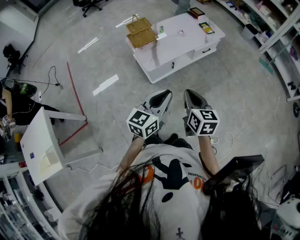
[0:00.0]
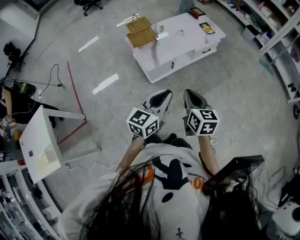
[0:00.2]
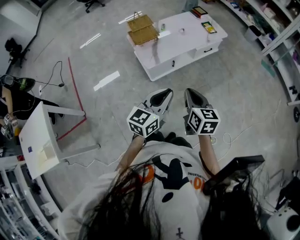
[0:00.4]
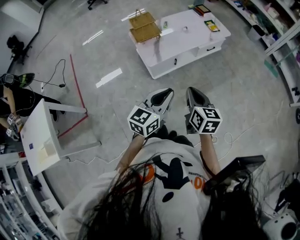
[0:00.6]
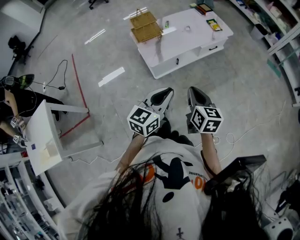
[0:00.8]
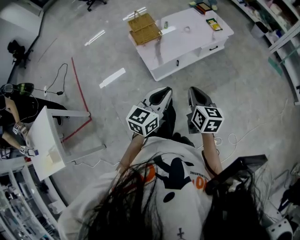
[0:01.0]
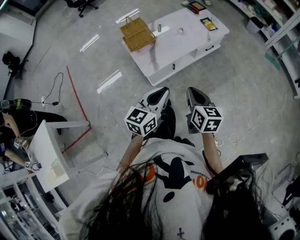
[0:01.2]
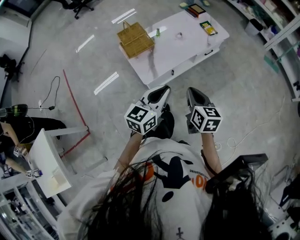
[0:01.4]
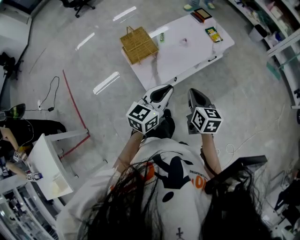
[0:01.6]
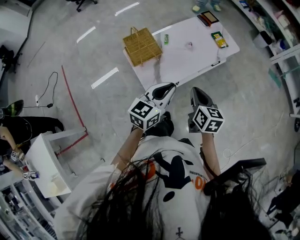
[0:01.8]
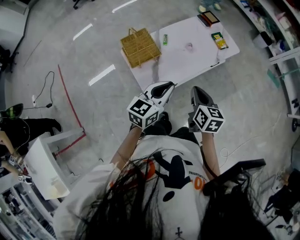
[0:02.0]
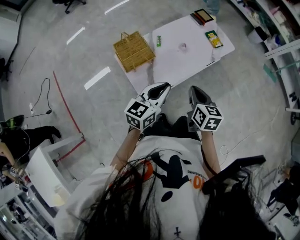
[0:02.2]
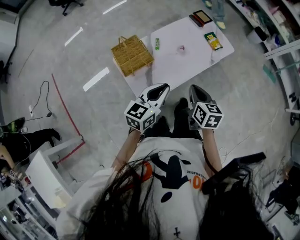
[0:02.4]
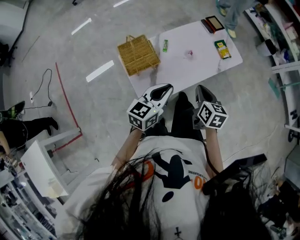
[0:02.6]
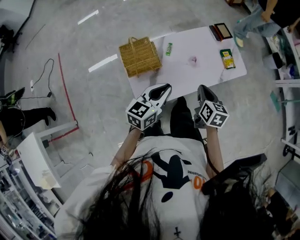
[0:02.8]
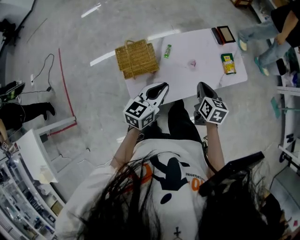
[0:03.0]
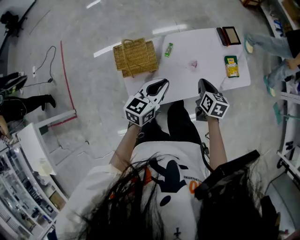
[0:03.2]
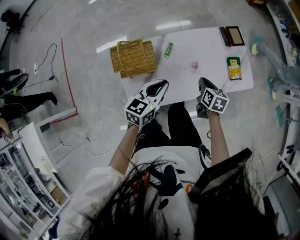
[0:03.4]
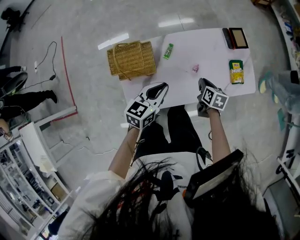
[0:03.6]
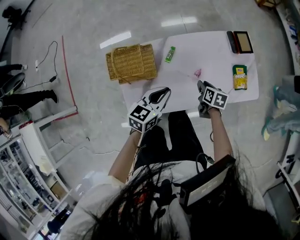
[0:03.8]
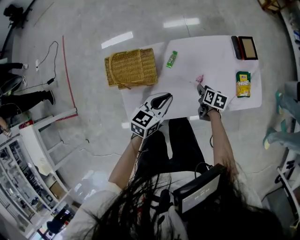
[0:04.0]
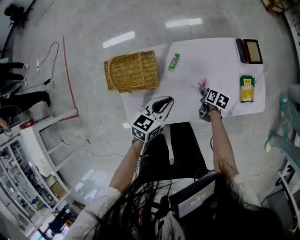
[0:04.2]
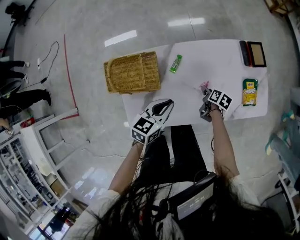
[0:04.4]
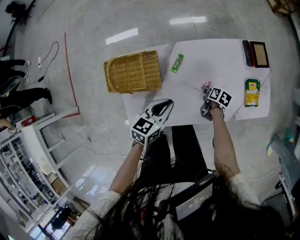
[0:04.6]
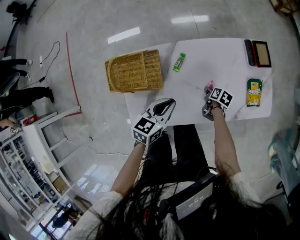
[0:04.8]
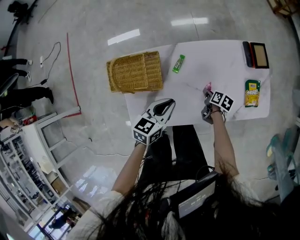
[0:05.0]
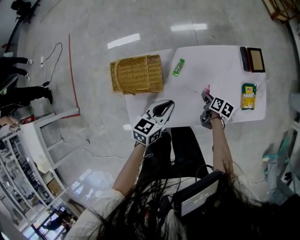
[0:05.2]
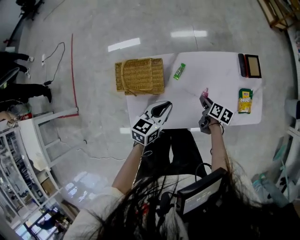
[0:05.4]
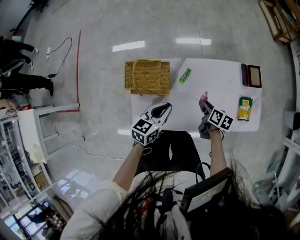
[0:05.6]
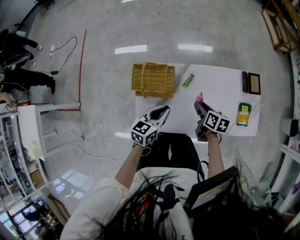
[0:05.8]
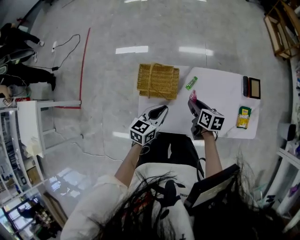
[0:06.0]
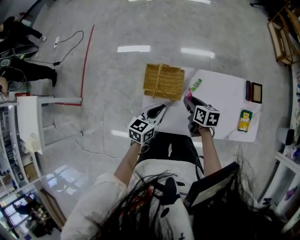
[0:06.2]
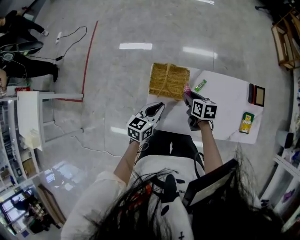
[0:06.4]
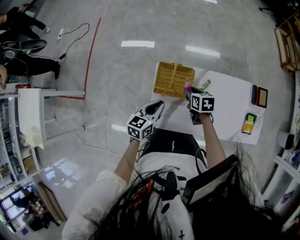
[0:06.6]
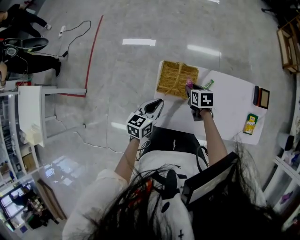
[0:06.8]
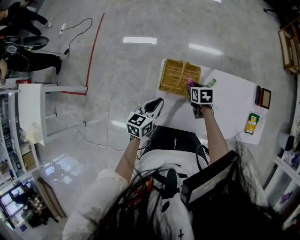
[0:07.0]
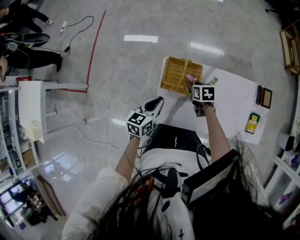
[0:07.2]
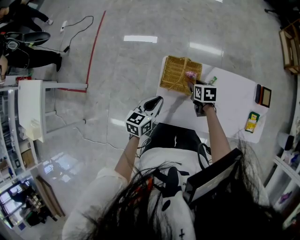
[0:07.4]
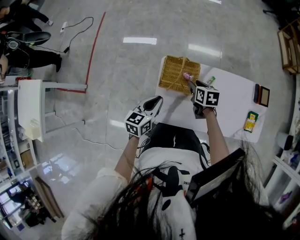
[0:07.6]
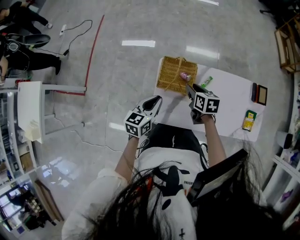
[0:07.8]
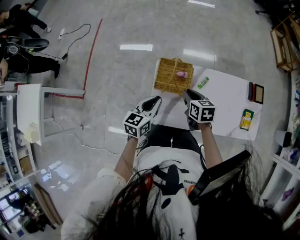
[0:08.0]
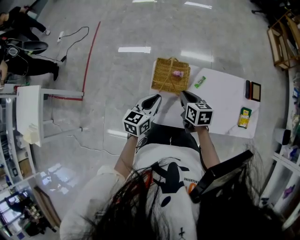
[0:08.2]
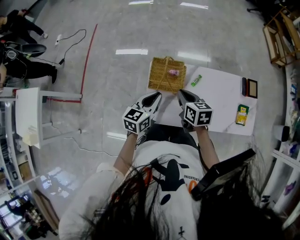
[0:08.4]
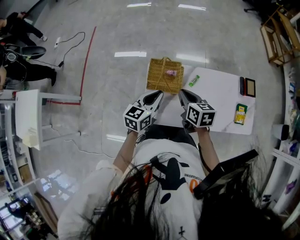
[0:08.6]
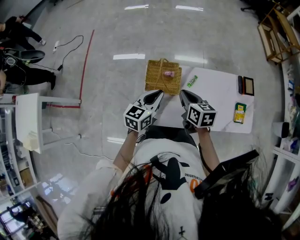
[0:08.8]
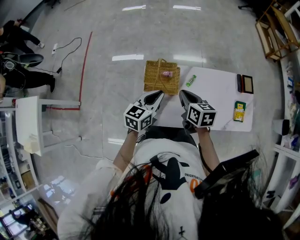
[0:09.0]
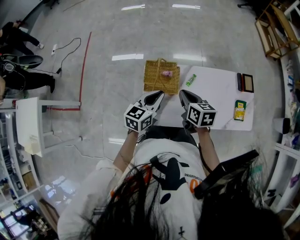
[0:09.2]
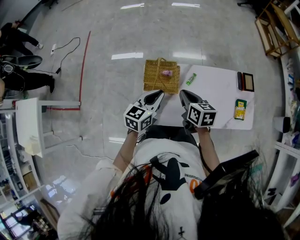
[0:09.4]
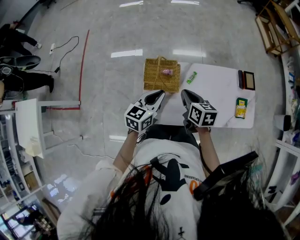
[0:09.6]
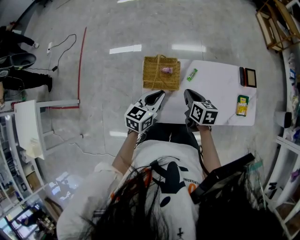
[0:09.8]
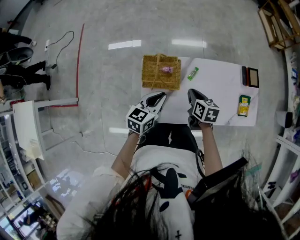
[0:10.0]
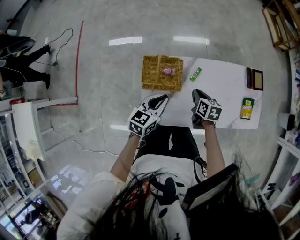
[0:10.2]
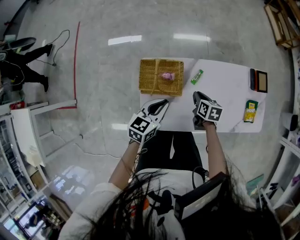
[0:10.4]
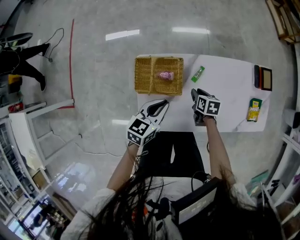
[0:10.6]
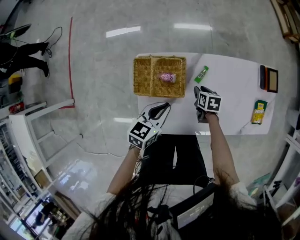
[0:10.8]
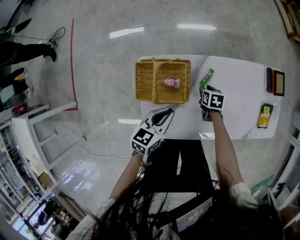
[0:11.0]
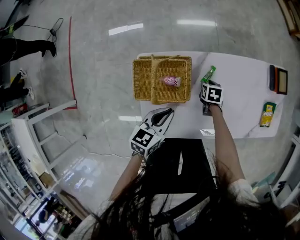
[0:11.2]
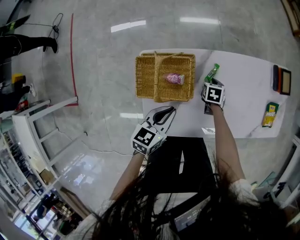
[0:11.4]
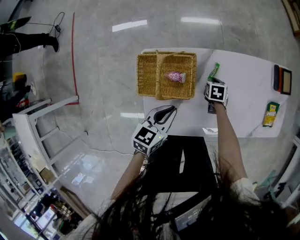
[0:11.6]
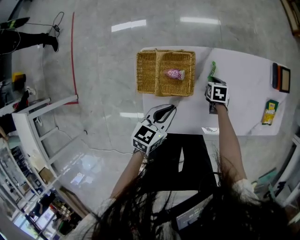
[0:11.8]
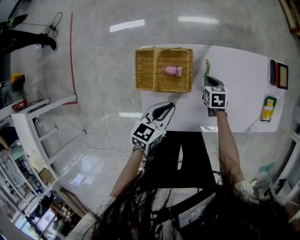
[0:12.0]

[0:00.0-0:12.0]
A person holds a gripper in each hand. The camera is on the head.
0:00.0 to 0:01.6: The two grippers go about 25 cm forward.
0:01.6 to 0:03.0: The two grippers go about 30 cm forward.
0:03.0 to 0:04.4: The right gripper shifts roughly 35 cm downward and forward, changes its angle by approximately 30 degrees, and opens its fingers, while the left gripper shifts about 20 cm downward and forward.
0:04.4 to 0:06.0: The right gripper shifts roughly 30 cm upward and to the left, and changes its angle by some 40 degrees, while the left gripper travels to the left and upward by about 15 cm.
0:06.0 to 0:07.6: The left gripper is displaced to the left by roughly 15 cm. The right gripper is displaced to the left and forward by some 15 cm.
0:07.6 to 0:09.0: The left gripper shifts approximately 10 cm to the right and upward; the right gripper is displaced upward and backward by some 15 cm, and closes its fingers.
0:09.0 to 0:10.4: The left gripper travels downward by some 10 cm, while the right gripper is displaced downward by roughly 25 cm, and rotates roughly 20 degrees.
0:10.4 to 0:12.0: The grippers both shift downward by approximately 10 cm. The right gripper swivels some 20 degrees, and opens, then closes once more.

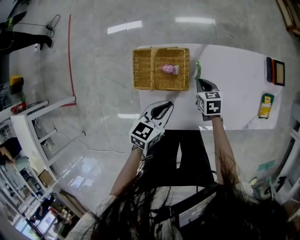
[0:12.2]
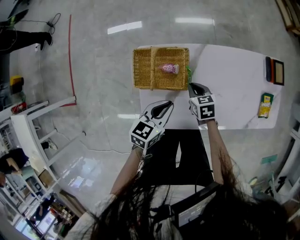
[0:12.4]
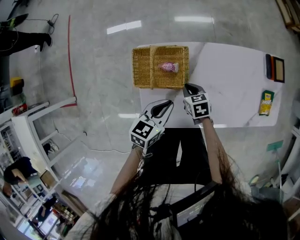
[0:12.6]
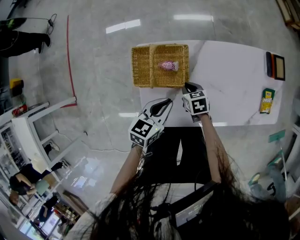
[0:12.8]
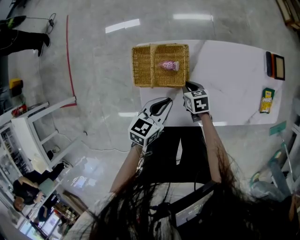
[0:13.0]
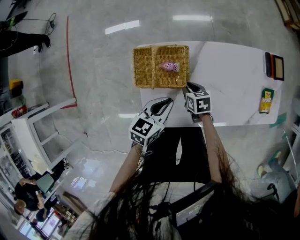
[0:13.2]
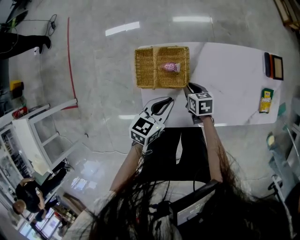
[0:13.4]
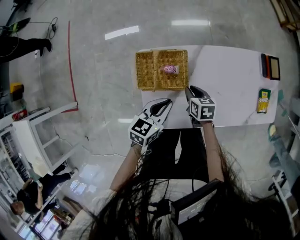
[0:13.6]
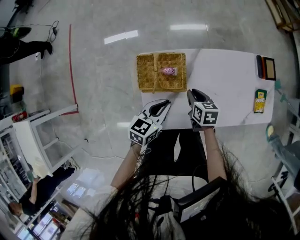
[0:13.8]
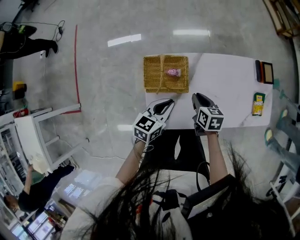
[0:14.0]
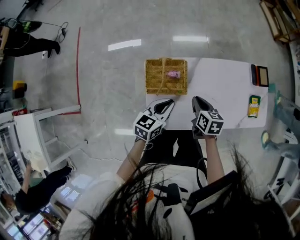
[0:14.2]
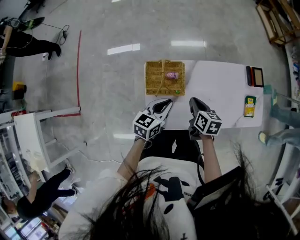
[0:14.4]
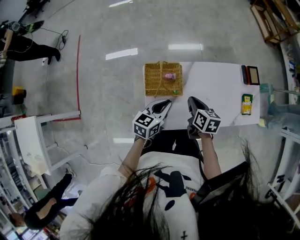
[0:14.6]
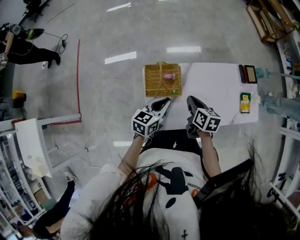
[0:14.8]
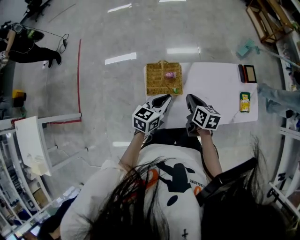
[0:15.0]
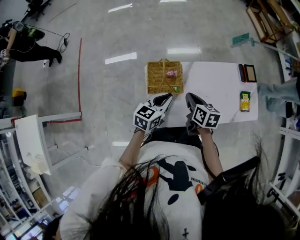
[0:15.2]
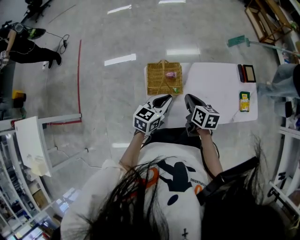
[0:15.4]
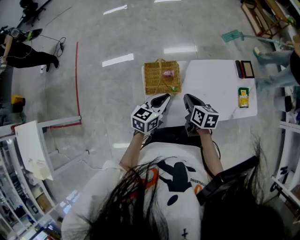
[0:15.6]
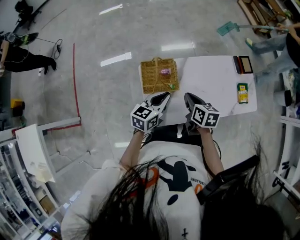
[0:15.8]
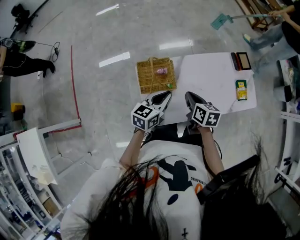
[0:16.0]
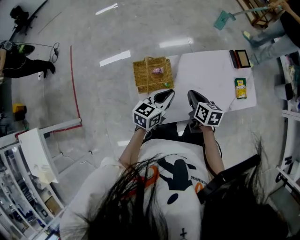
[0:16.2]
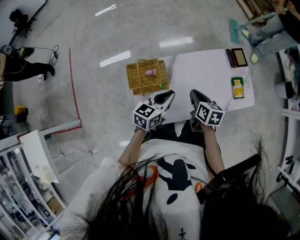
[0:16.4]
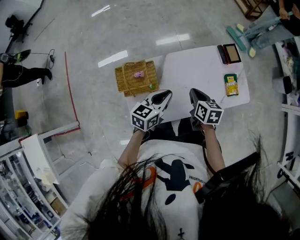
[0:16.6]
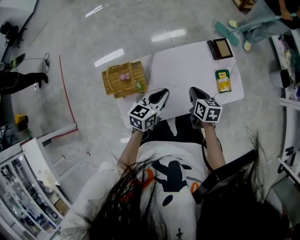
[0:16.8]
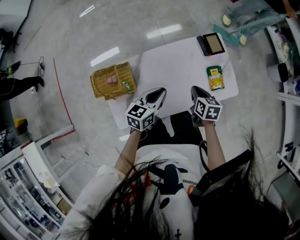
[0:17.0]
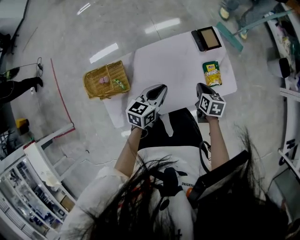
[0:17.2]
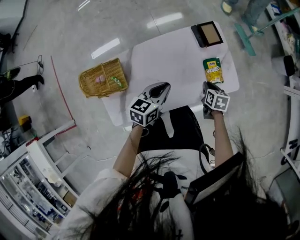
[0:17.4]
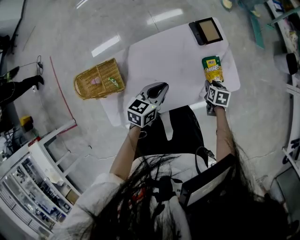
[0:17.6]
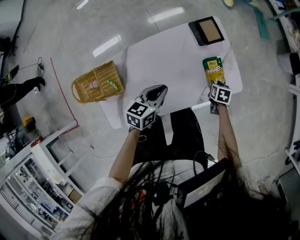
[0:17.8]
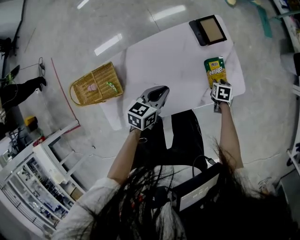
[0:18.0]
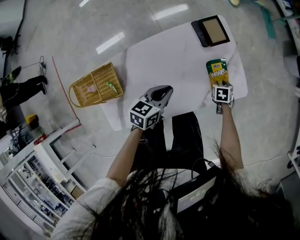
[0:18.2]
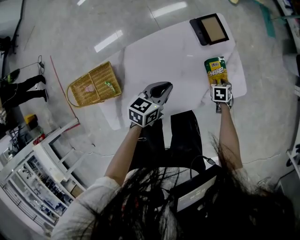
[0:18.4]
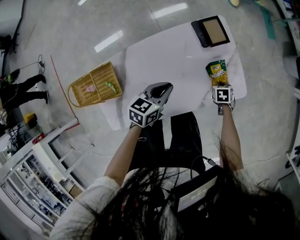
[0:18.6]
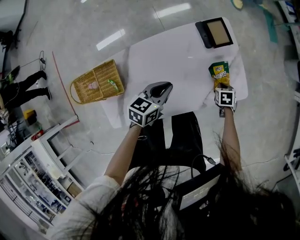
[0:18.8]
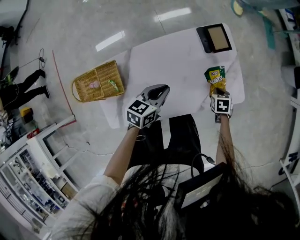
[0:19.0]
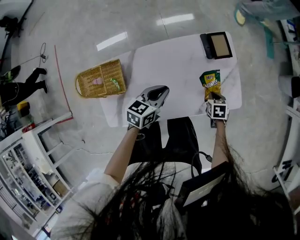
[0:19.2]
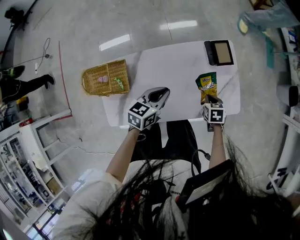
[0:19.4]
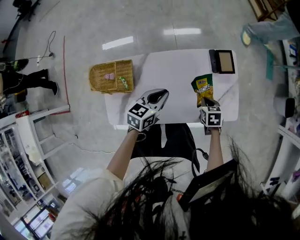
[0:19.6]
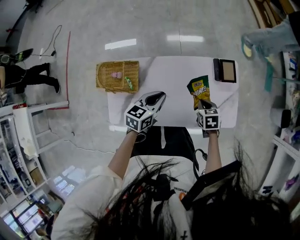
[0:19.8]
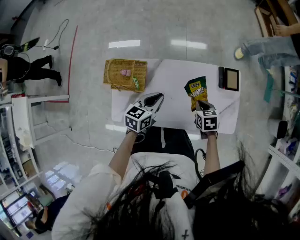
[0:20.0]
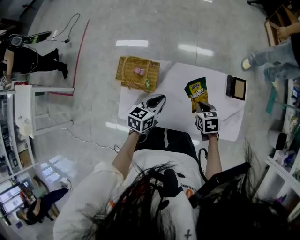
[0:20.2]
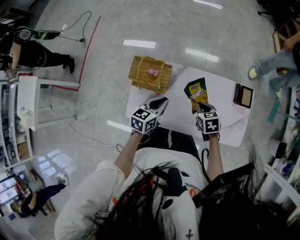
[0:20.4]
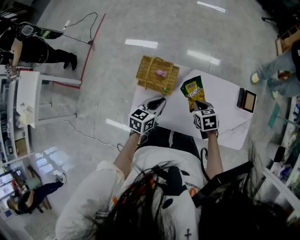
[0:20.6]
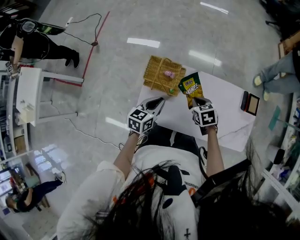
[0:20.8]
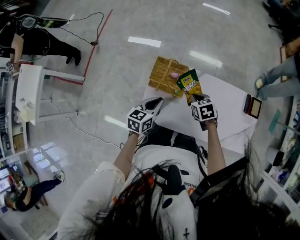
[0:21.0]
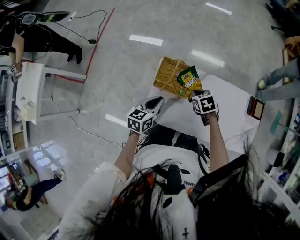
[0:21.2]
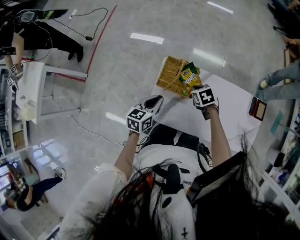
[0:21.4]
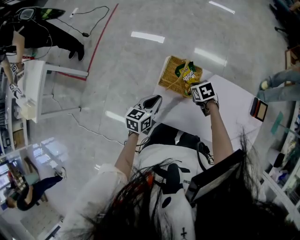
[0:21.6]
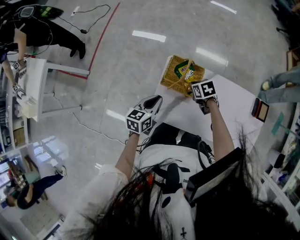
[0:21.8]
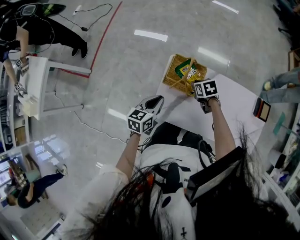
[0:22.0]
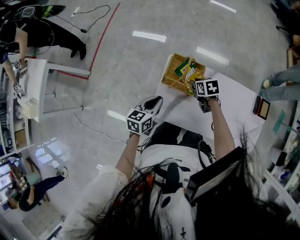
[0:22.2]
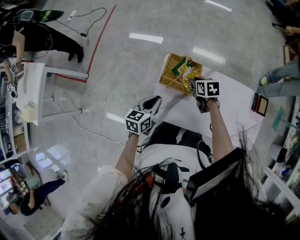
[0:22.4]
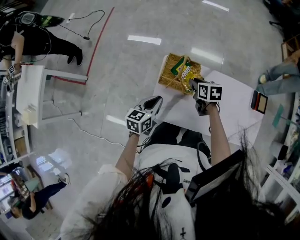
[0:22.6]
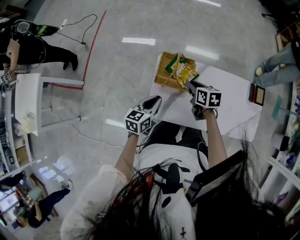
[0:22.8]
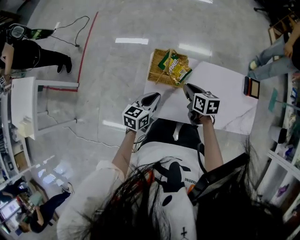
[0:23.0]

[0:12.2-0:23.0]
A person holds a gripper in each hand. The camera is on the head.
0:12.2 to 0:13.8: The right gripper goes some 5 cm upward.
0:13.8 to 0:15.2: The right gripper travels upward by about 20 cm, while the left gripper goes roughly 10 cm upward.
0:15.2 to 0:16.8: Both grippers travel together to the right, roughly 25 cm.
0:16.8 to 0:18.4: The left gripper moves about 25 cm, while the right gripper shifts about 30 cm downward, points its fingers about 30 degrees further downward, and opens.
0:18.4 to 0:20.0: The left gripper shifts by about 20 cm, and swivels about 30 degrees. The right gripper is displaced upward by roughly 25 cm, turns by roughly 30 degrees, and closes up.
0:20.0 to 0:21.4: The two grippers go about 35 cm to the left. The right gripper swivels some 30 degrees.
0:21.4 to 0:23.0: The right gripper is displaced backward and upward by about 10 cm, and changes its angle by some 40 degrees.

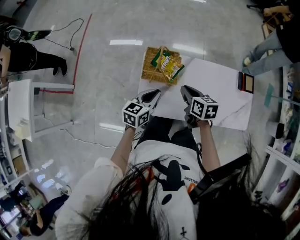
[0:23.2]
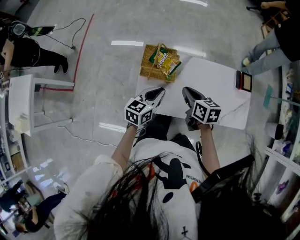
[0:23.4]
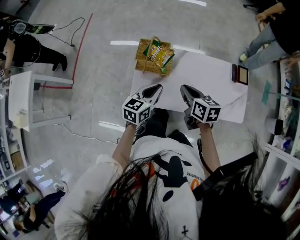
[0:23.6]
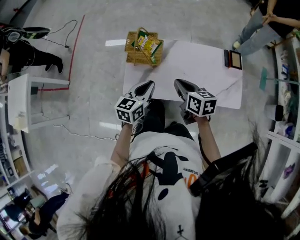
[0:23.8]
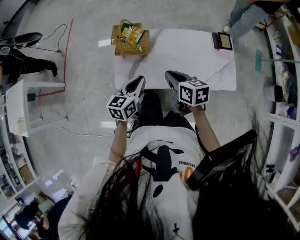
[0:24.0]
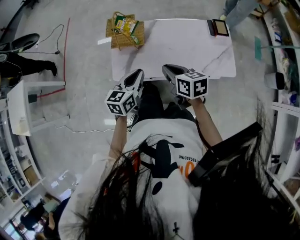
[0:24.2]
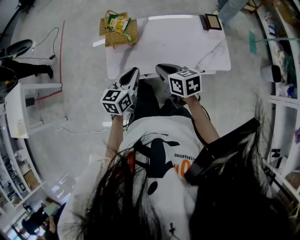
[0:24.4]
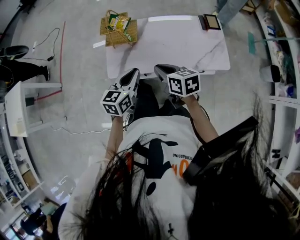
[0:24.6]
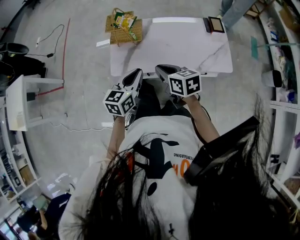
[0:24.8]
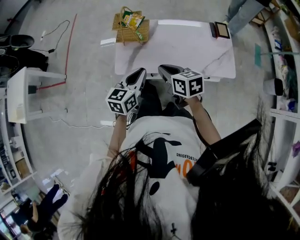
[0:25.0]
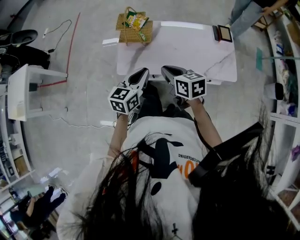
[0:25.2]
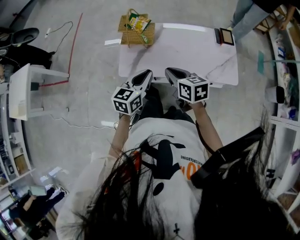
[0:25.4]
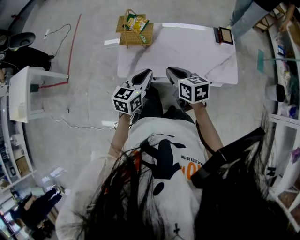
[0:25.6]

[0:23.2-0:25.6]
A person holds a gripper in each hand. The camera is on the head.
0:23.2 to 0:24.4: The two grippers go roughly 25 cm backward and to the right.
0:24.4 to 0:25.6: The grippers stay close to where they were, moving slightly.
